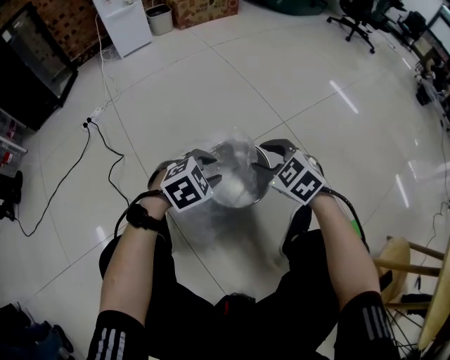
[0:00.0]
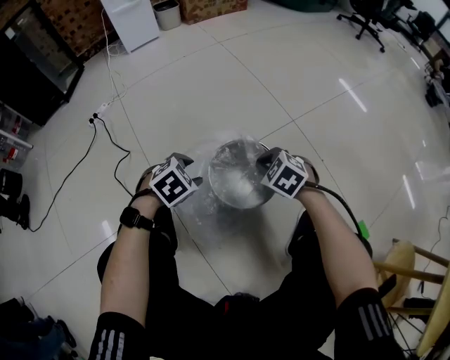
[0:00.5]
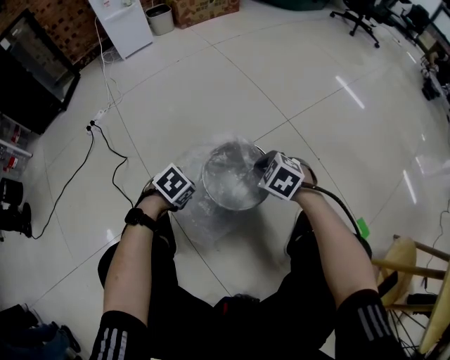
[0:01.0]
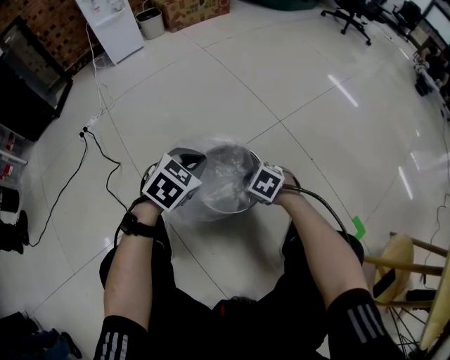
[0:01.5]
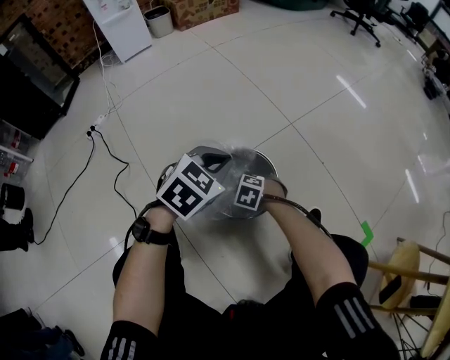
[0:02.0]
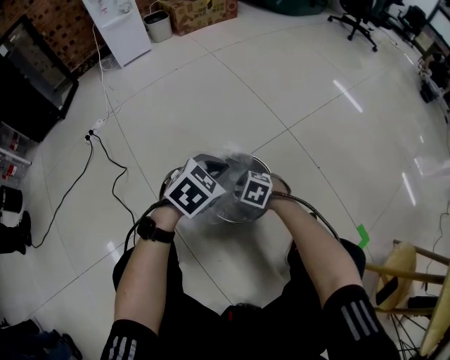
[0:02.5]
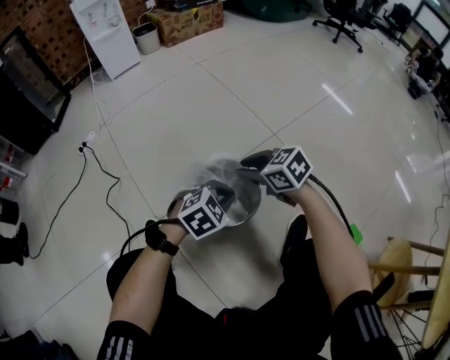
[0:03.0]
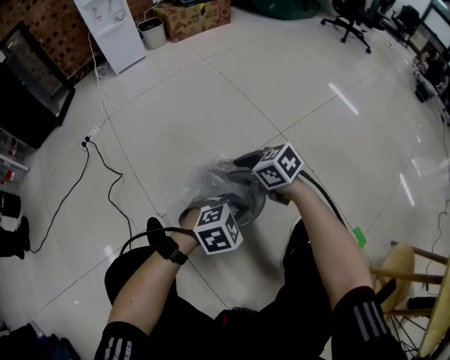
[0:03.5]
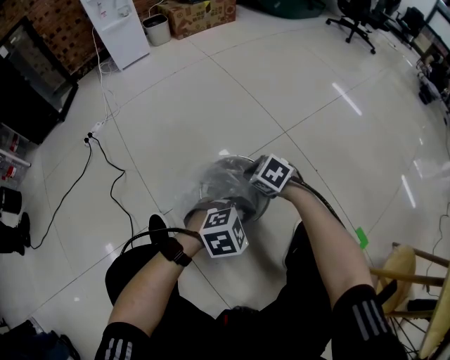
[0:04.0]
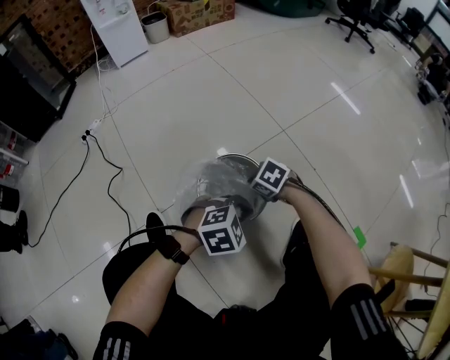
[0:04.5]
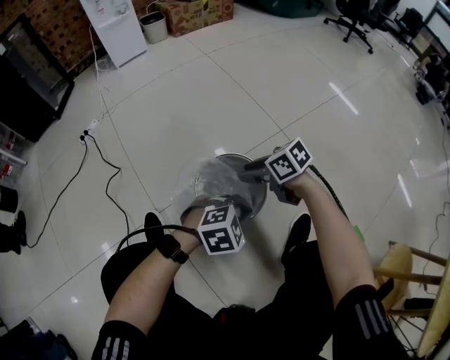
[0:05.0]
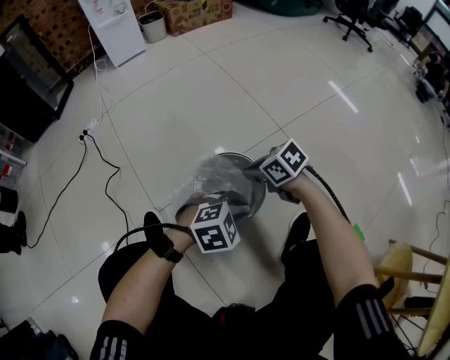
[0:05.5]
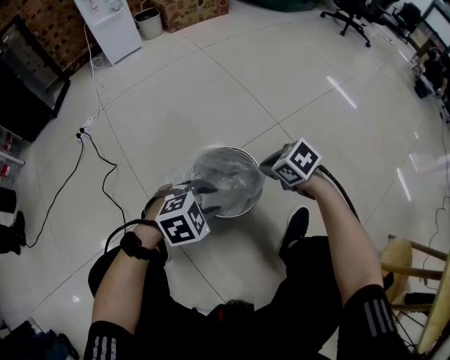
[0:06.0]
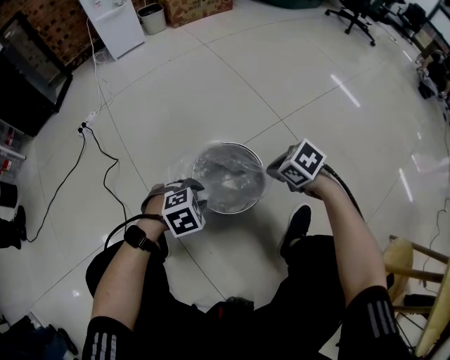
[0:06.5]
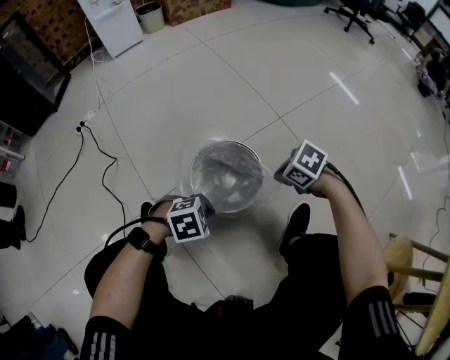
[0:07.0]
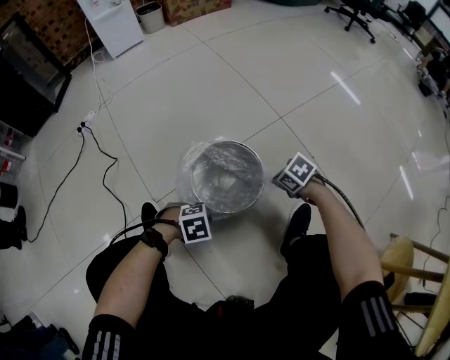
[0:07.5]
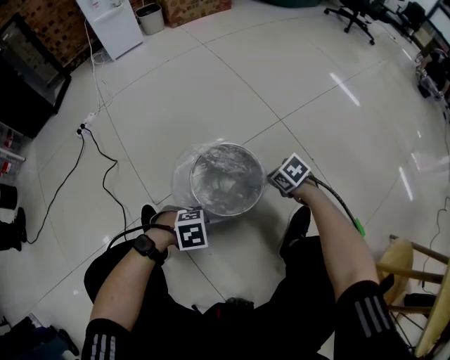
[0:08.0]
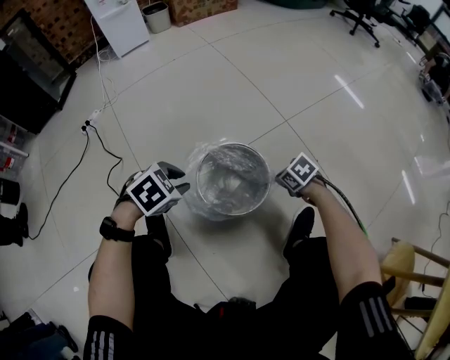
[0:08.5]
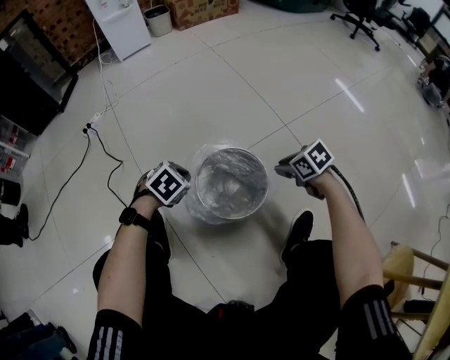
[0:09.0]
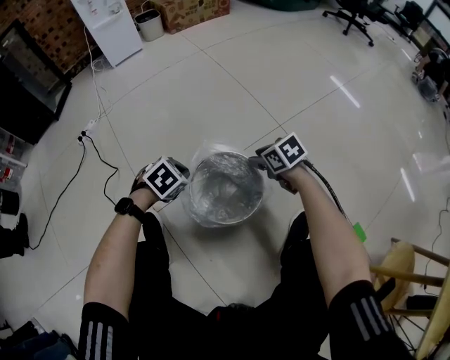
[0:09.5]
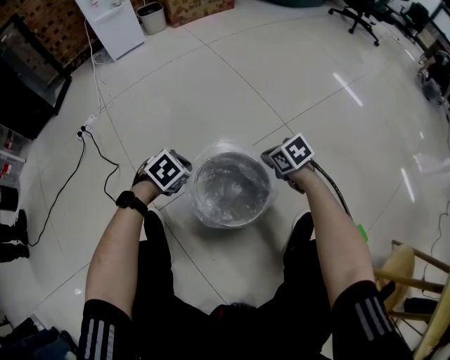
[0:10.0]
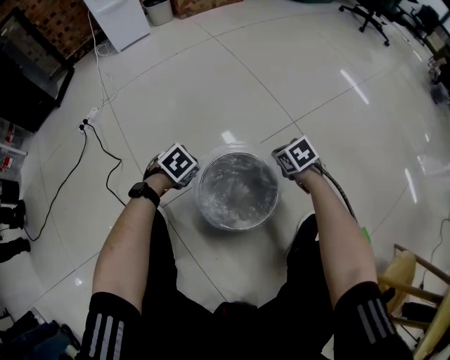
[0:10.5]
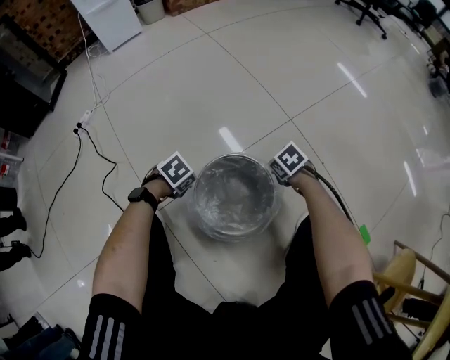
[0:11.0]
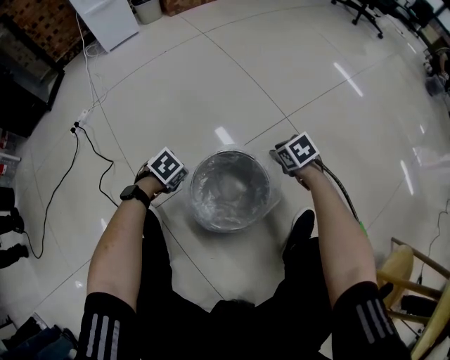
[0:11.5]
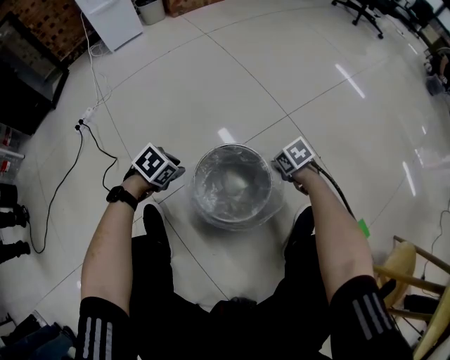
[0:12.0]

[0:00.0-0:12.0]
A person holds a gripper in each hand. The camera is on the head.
0:00.0 to 0:02.0: The left gripper moves forward, about 5 cm, goes downward and returns, roughly 10 cm each way, and closes. The right gripper goes roughly 20 cm downward, rotates about 30 degrees, and closes its fingers.
0:02.0 to 0:04.0: The left gripper ends up about 15 cm from where it was, and turns by roughly 30 degrees, while the right gripper goes some 10 cm upward, and opens, then closes again.
0:04.0 to 0:06.0: The left gripper changes place by approximately 10 cm, and opens its fingers. Meanwhile the right gripper reaches some 5 cm downward, then returns, and opens and closes again.
0:06.0 to 0:08.0: Both grippers travel together downward, about 10 cm. The left gripper rotates some 30 degrees, and closes, then opens again.
0:08.0 to 0:10.0: The left gripper goes upward and returns, some 10 cm each way, changes its angle by about 30 degrees, and closes its fingers, while the right gripper shifts by approximately 10 cm, and opens, then closes once more.
0:10.0 to 0:12.0: The left gripper opens its fingers. Meanwhile the right gripper moves up and down over roughly 10 cm, changing direction 2 times.

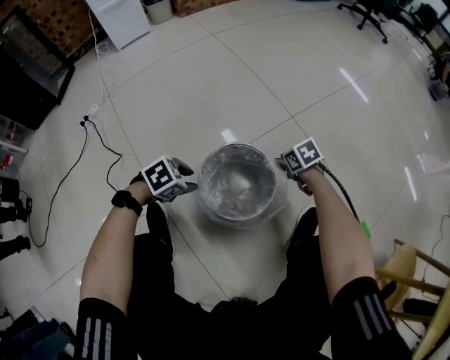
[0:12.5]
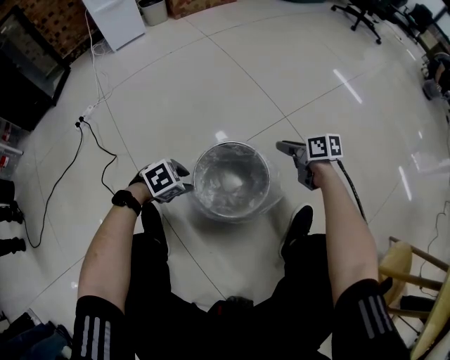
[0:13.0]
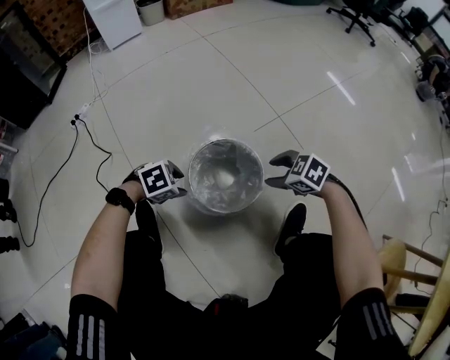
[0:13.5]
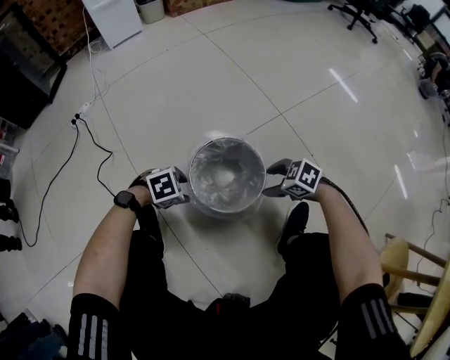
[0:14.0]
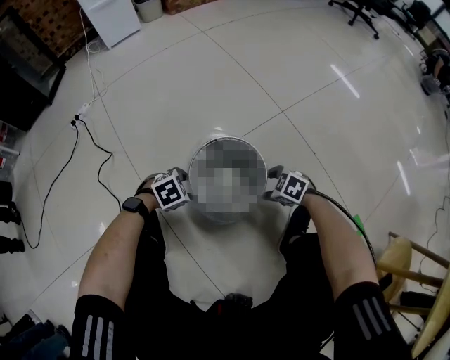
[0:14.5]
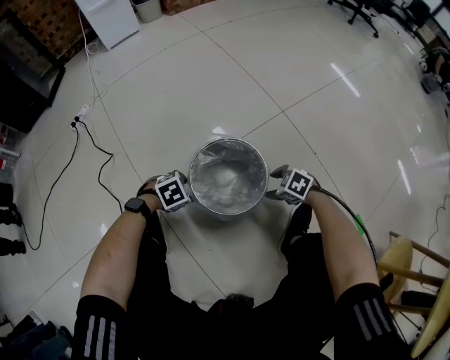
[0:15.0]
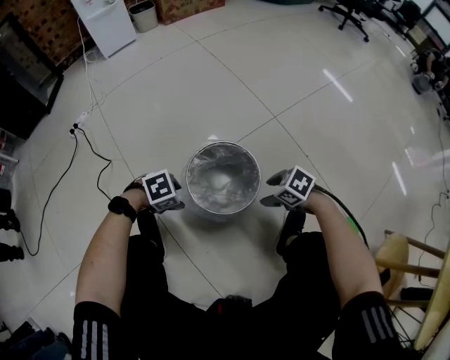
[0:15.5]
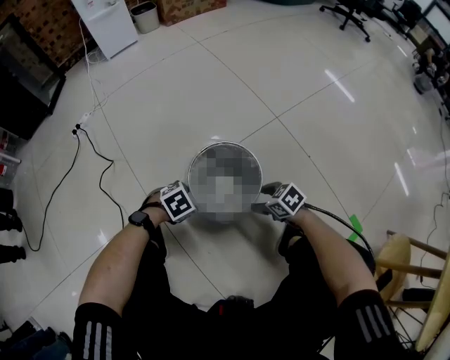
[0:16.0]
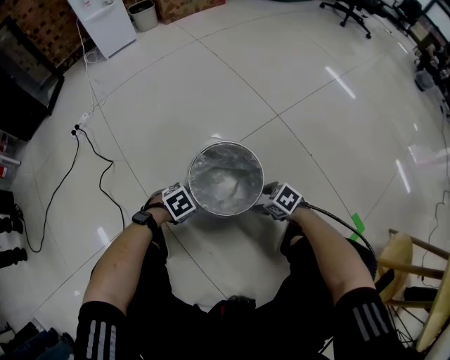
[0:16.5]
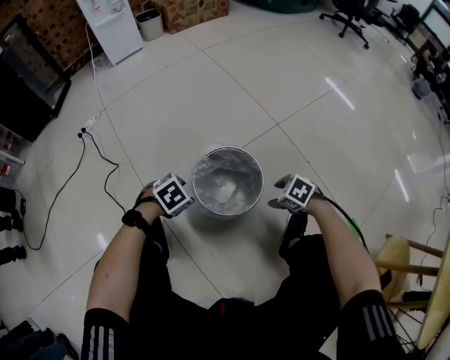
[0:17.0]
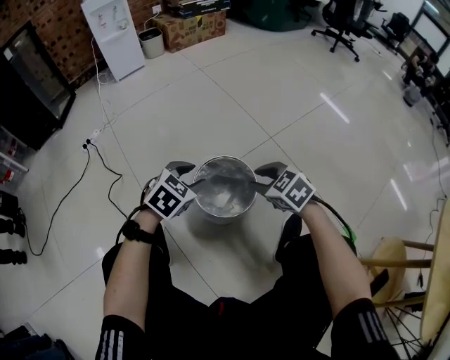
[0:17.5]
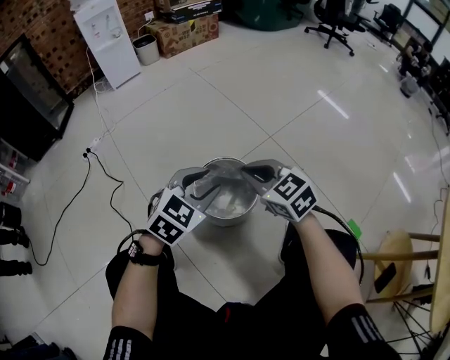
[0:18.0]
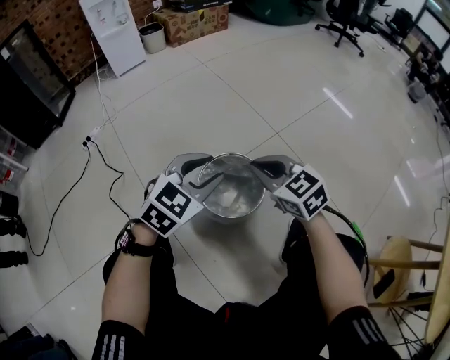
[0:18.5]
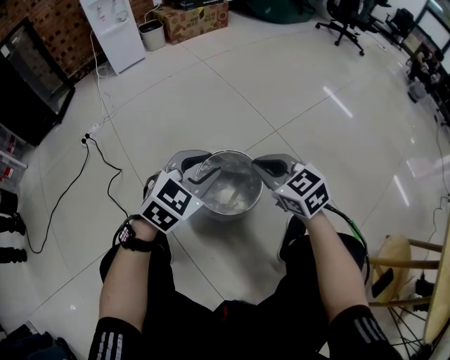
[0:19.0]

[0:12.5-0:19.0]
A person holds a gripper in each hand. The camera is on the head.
0:12.5 to 0:14.5: The right gripper travels upward and back again, roughly 10 cm each way, rotates about 40 degrees, and opens its fingers. Meanwhile the left gripper shifts roughly 5 cm downward.
0:14.5 to 0:17.0: The left gripper goes up and down, roughly 10 cm each way, reversing 2 times. Meanwhile the right gripper moves up and down over approximately 5 cm, changing direction 2 times.
0:17.0 to 0:19.0: The grippers both shift upward by roughly 25 cm. The right gripper tilts its fingers about 40 degrees upward, and closes its fingers. The left gripper angles its fingers upward, by some 40 degrees, and closes its fingers.

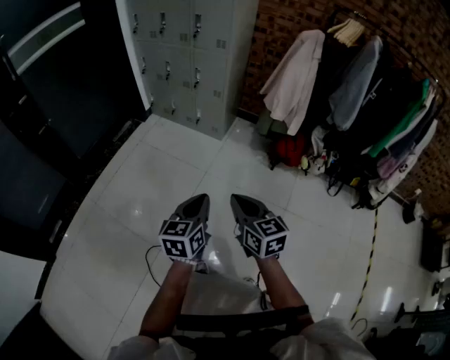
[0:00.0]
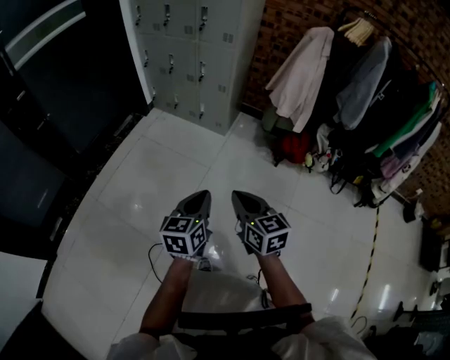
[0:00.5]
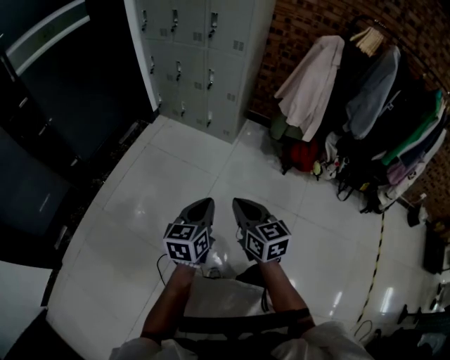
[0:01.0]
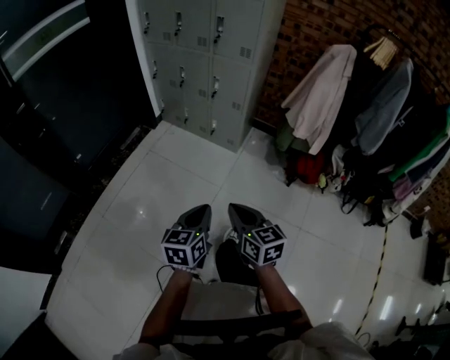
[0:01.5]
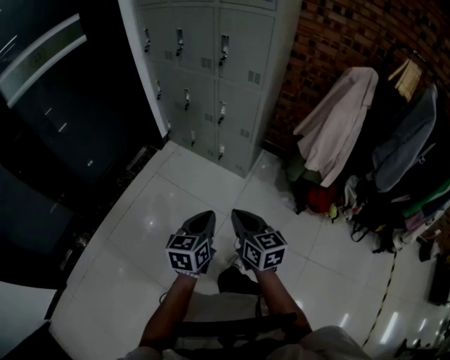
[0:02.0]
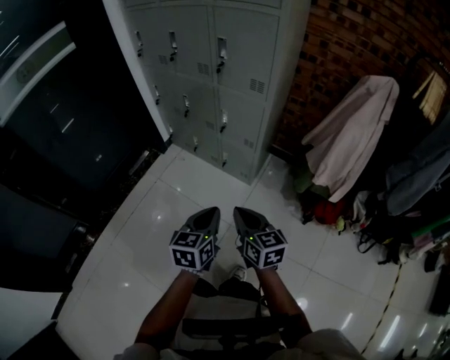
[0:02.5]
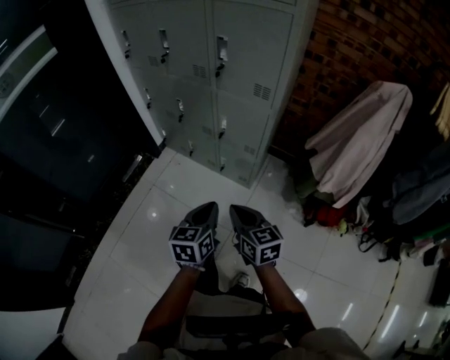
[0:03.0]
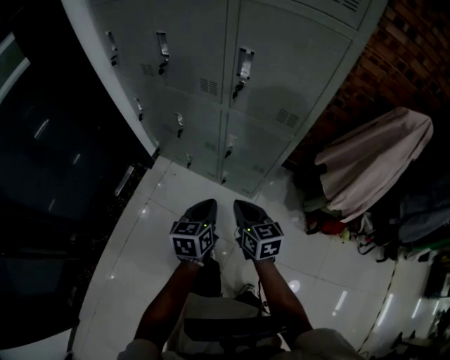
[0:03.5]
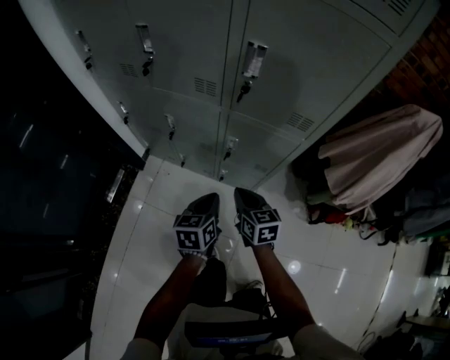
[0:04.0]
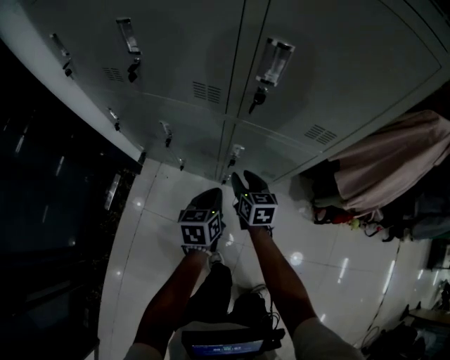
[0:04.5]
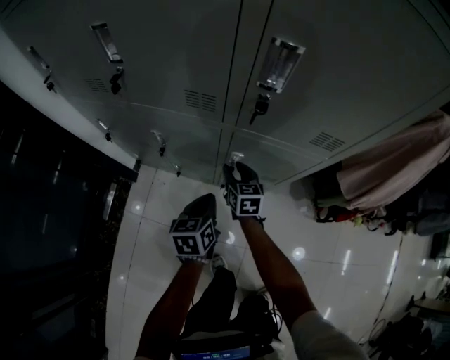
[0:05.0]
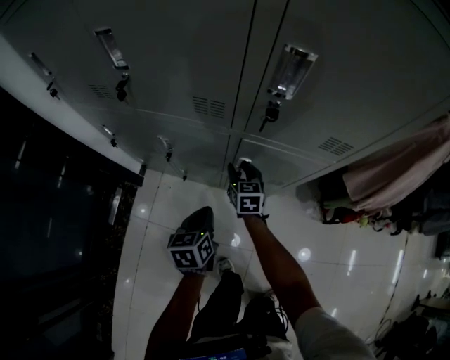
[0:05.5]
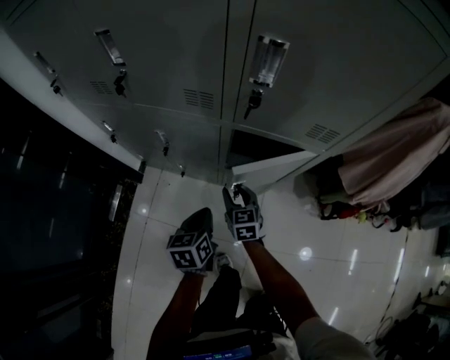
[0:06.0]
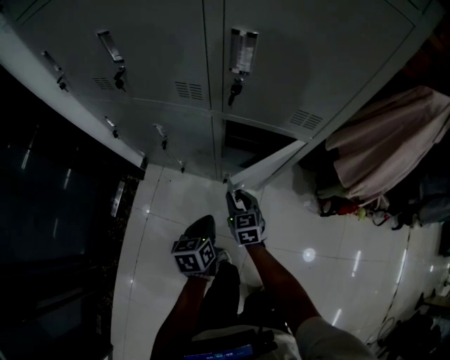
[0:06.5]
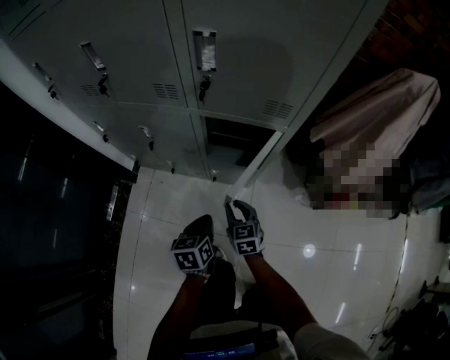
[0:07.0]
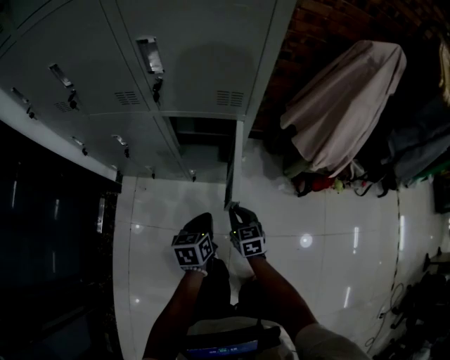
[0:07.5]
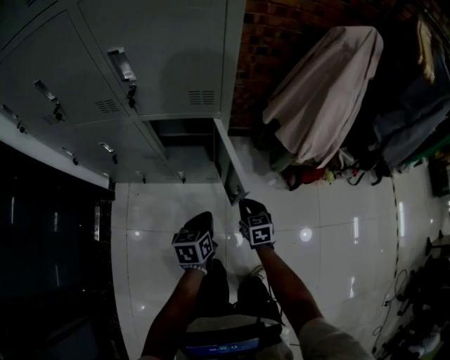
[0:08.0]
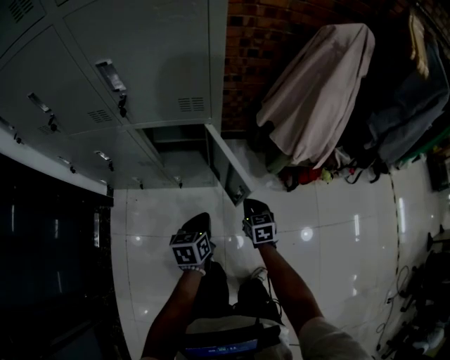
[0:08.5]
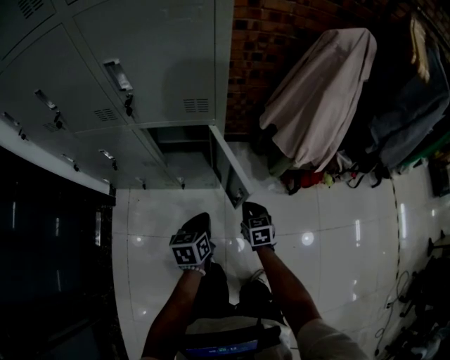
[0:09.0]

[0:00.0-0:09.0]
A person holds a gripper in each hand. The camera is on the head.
0:00.0 to 0:02.0: Both grippers move forward, some 35 cm.
0:02.0 to 0:04.5: Both grippers are carried forward, roughly 60 cm. The right gripper swivels approximately 30 degrees, and opens its fingers.
0:04.5 to 0:07.0: The grippers both shift backward by approximately 15 cm.
0:07.0 to 0:09.0: The left gripper travels to the right by approximately 15 cm; the right gripper moves to the right, about 20 cm, and closes its fingers.
